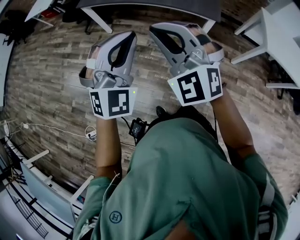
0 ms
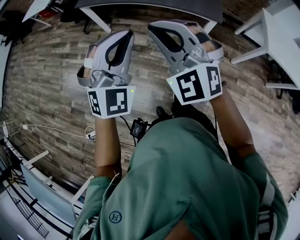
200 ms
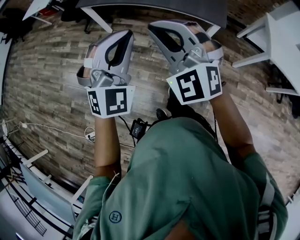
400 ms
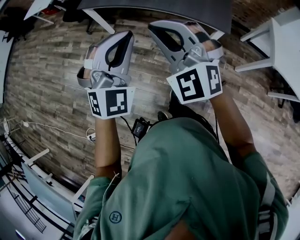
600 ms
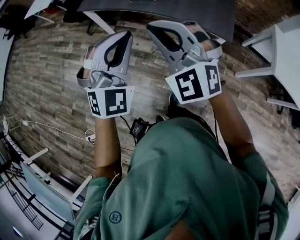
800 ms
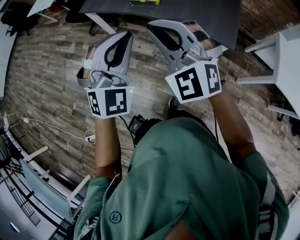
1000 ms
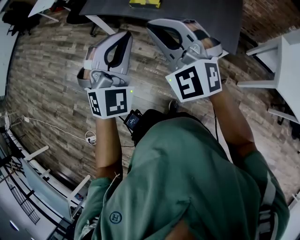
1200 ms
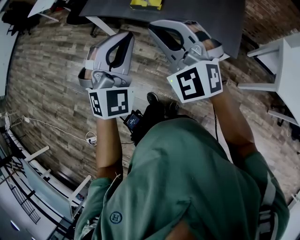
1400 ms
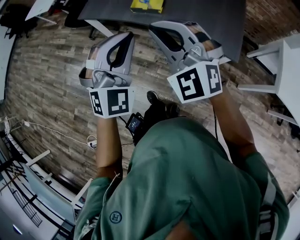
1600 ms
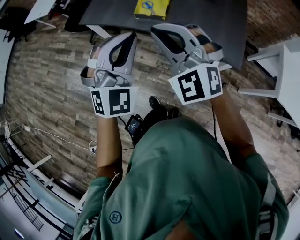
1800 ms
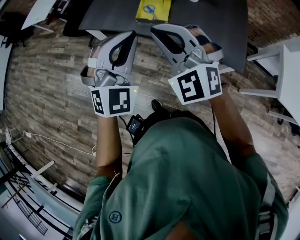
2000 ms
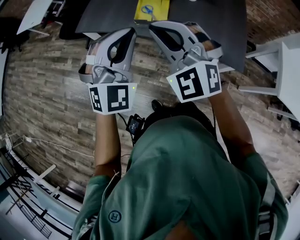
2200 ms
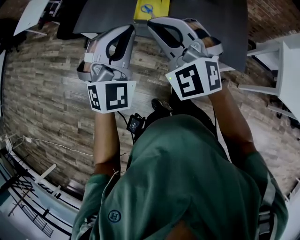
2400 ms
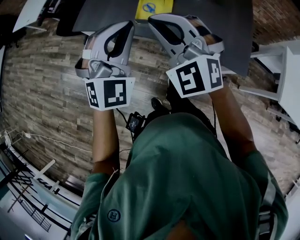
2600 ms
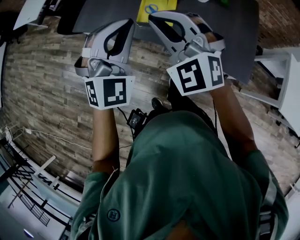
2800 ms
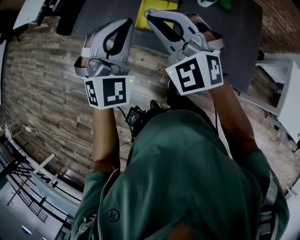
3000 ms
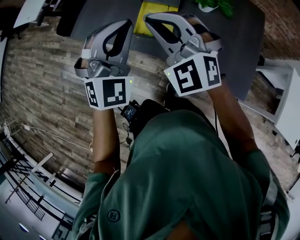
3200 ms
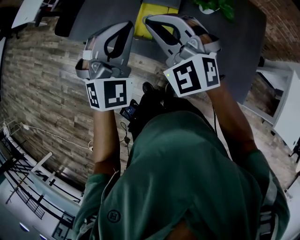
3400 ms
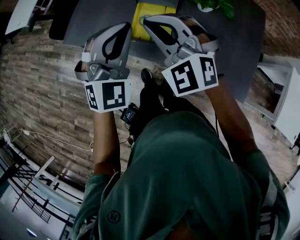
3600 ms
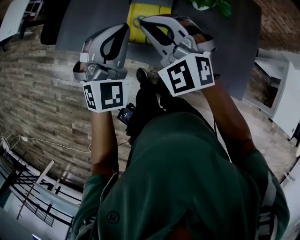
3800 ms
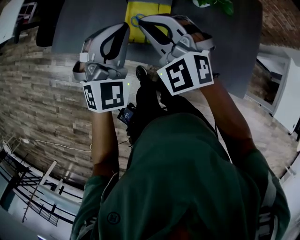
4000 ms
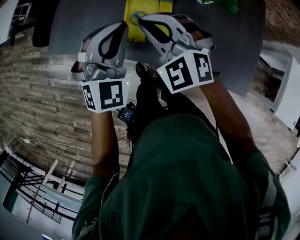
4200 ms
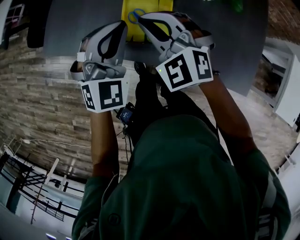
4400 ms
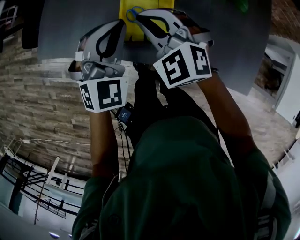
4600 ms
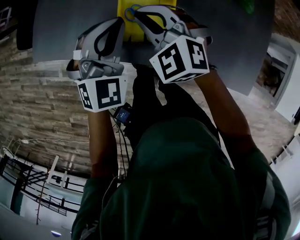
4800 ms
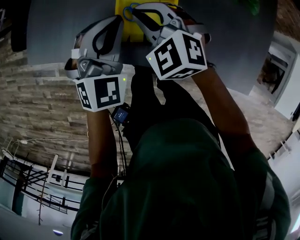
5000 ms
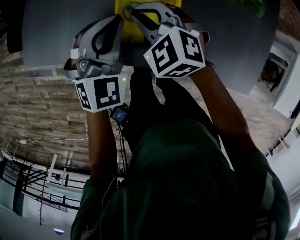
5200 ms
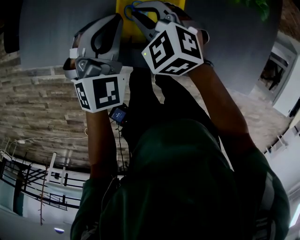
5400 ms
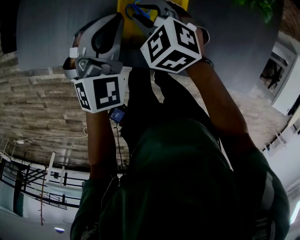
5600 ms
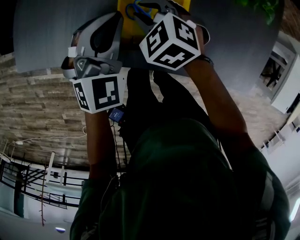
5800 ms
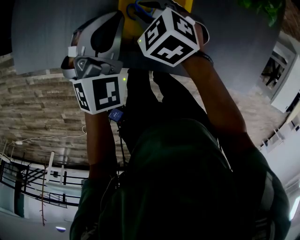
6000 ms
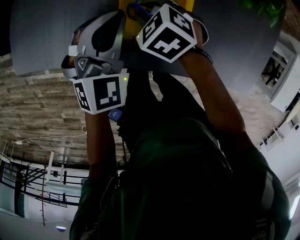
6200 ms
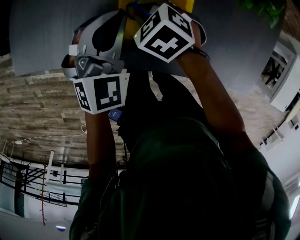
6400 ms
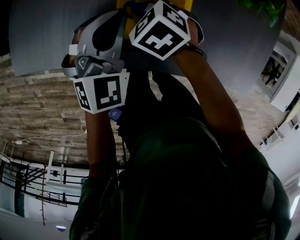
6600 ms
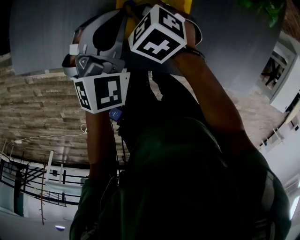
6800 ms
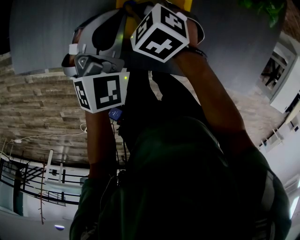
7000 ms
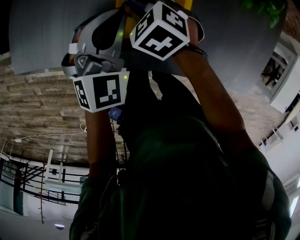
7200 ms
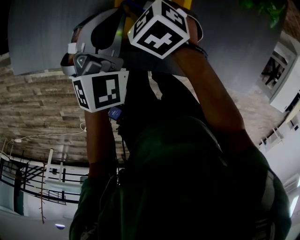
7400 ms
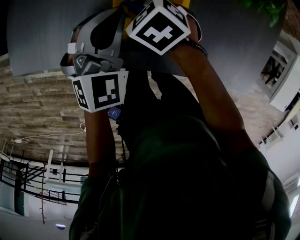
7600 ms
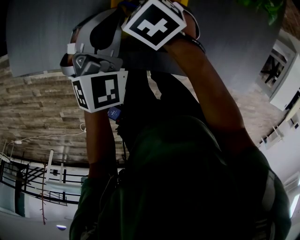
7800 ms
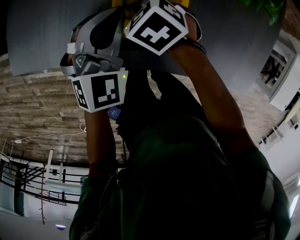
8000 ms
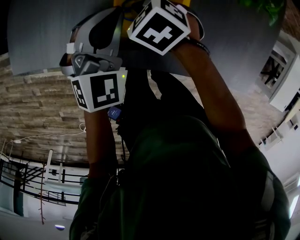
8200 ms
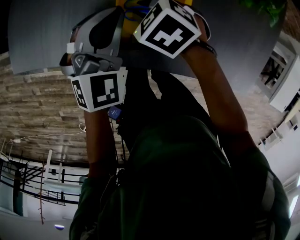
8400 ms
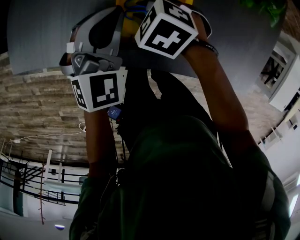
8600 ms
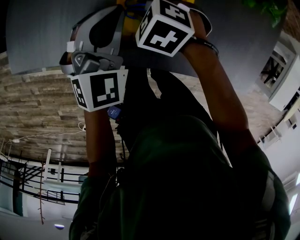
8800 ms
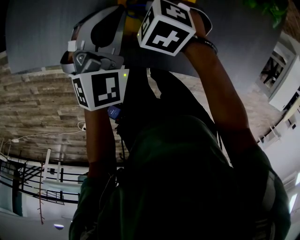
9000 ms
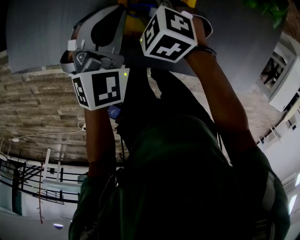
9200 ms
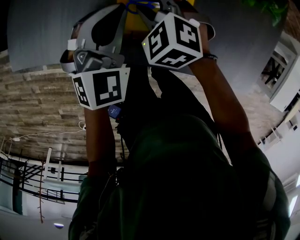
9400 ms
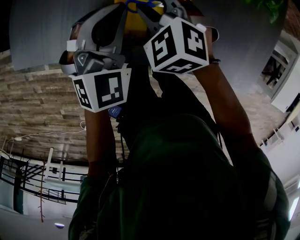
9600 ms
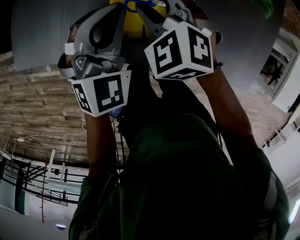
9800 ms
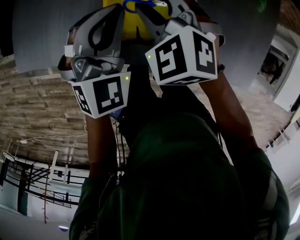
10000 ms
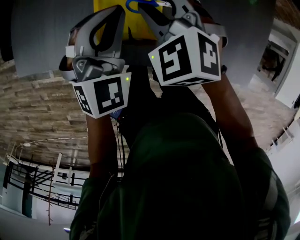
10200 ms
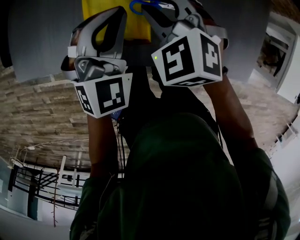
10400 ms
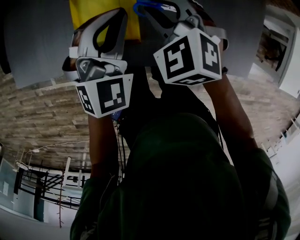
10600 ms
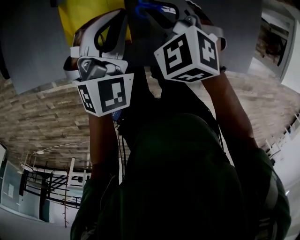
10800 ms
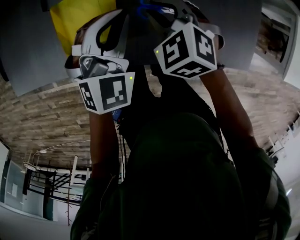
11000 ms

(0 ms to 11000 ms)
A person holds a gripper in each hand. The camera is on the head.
0 ms - 1600 ms: Both grippers move forward, some 30 cm.
1600 ms - 3200 ms: Both grippers move forward, approximately 30 cm.
3200 ms - 4800 ms: The two grippers go roughly 25 cm downward and forward. The right gripper swivels approximately 30 degrees.
4800 ms - 6200 ms: The left gripper shifts roughly 5 cm downward. Meanwhile the right gripper moves downward, about 15 cm, and turns by some 40 degrees.
6200 ms - 7800 ms: The grippers move only a little.
7800 ms - 9400 ms: The right gripper changes its angle by some 30 degrees.
9400 ms - 11000 ms: The two grippers go about 20 cm to the right.

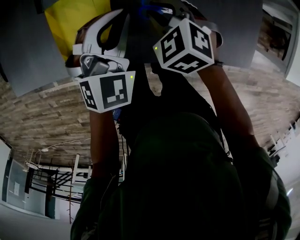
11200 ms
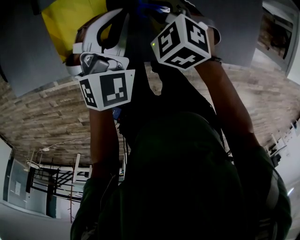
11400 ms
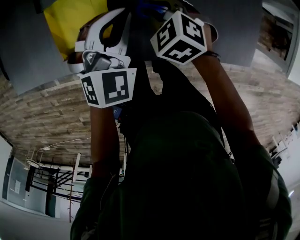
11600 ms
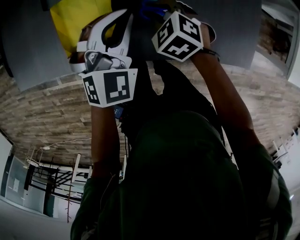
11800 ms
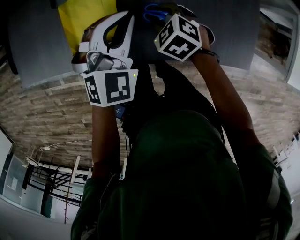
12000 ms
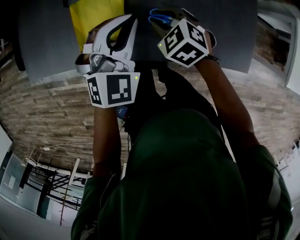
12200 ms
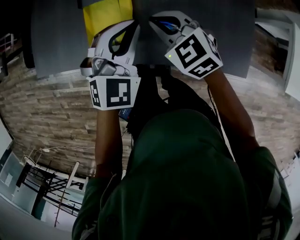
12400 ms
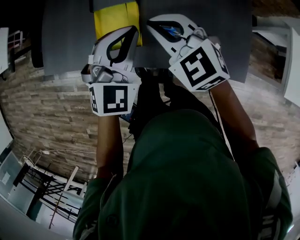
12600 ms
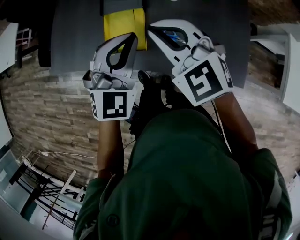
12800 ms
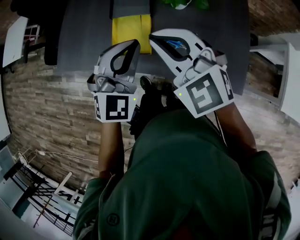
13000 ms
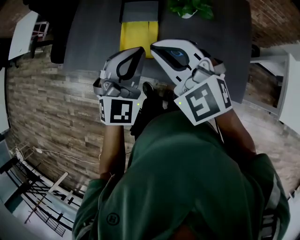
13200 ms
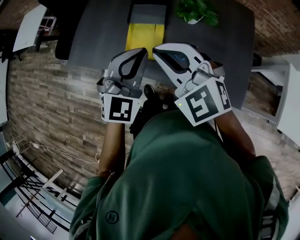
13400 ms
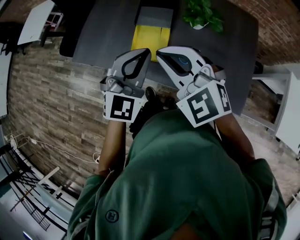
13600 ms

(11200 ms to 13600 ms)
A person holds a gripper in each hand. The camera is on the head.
11200 ms - 12400 ms: The two grippers go some 10 cm upward. The right gripper rotates roughly 20 degrees.
12400 ms - 13600 ms: The right gripper shifts approximately 25 cm upward and backward, and rotates some 30 degrees; the left gripper is displaced upward, to the left and backward by about 15 cm.

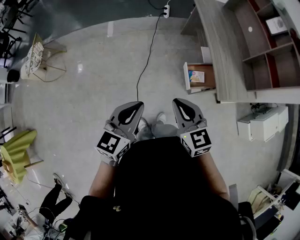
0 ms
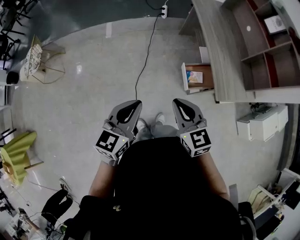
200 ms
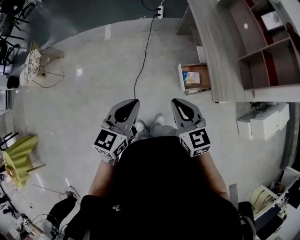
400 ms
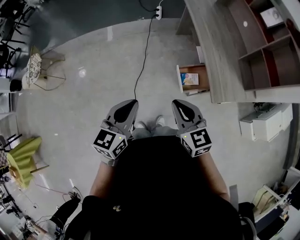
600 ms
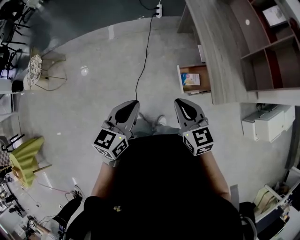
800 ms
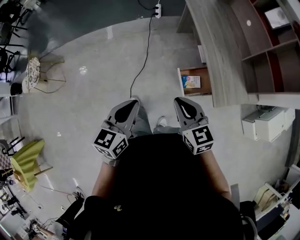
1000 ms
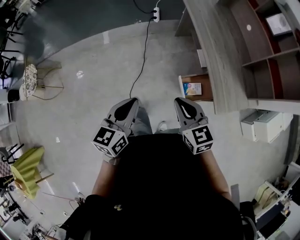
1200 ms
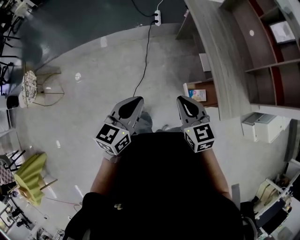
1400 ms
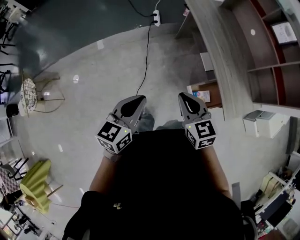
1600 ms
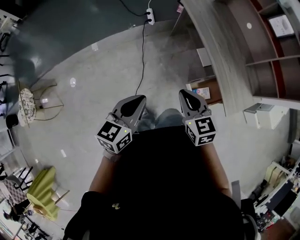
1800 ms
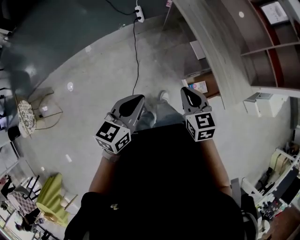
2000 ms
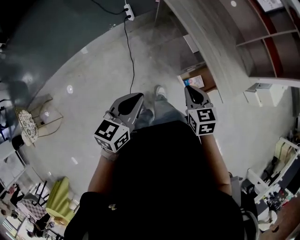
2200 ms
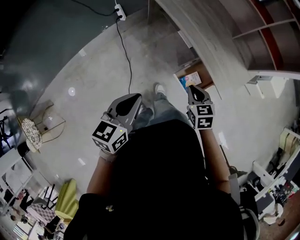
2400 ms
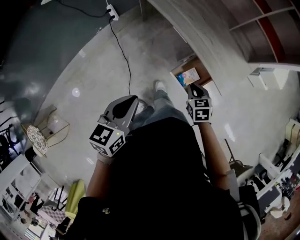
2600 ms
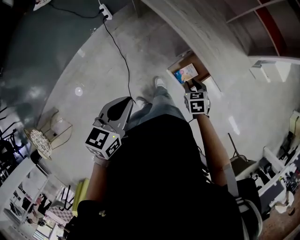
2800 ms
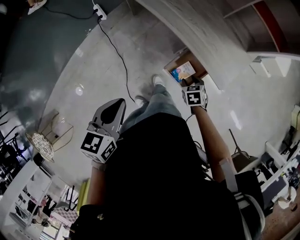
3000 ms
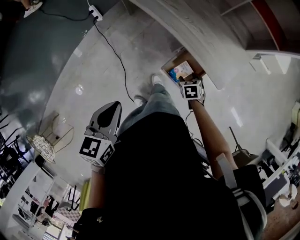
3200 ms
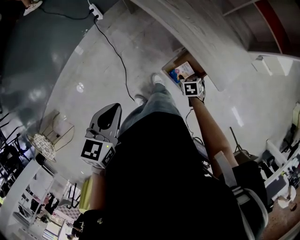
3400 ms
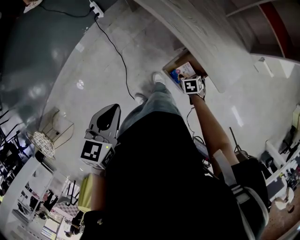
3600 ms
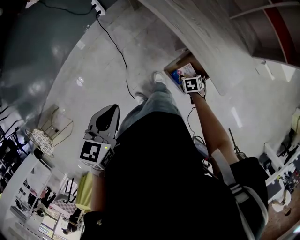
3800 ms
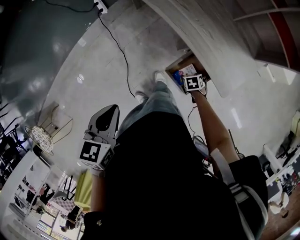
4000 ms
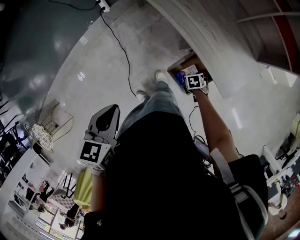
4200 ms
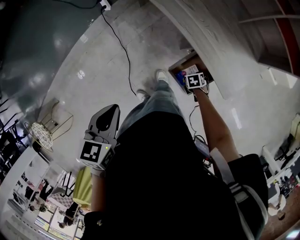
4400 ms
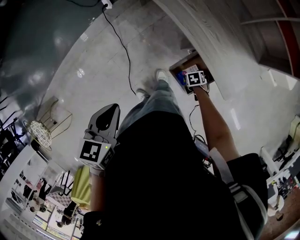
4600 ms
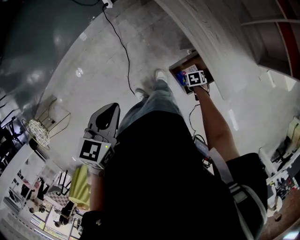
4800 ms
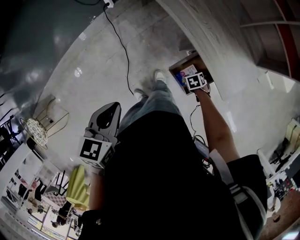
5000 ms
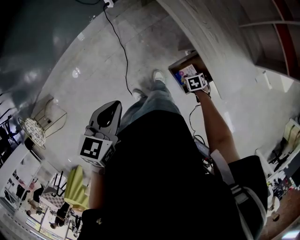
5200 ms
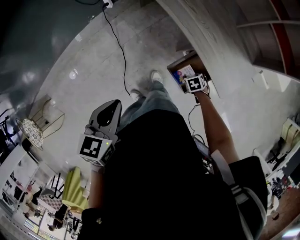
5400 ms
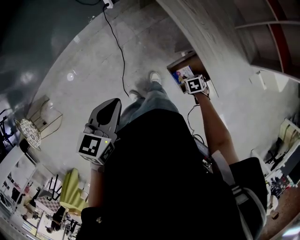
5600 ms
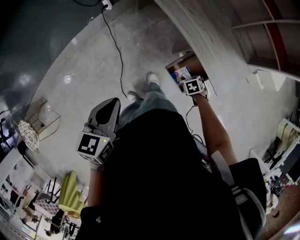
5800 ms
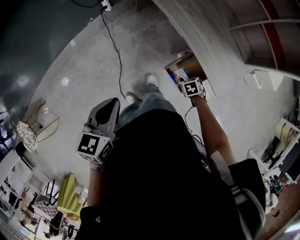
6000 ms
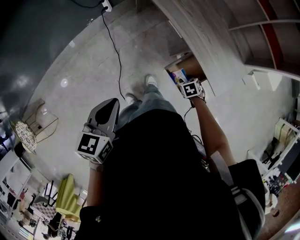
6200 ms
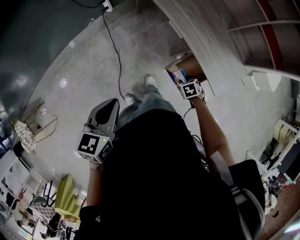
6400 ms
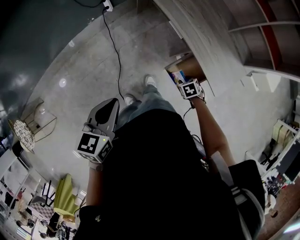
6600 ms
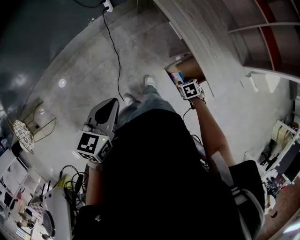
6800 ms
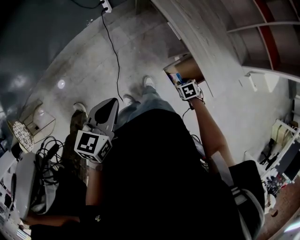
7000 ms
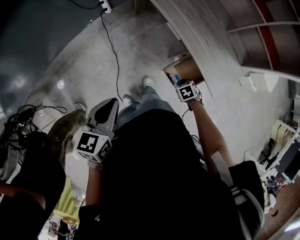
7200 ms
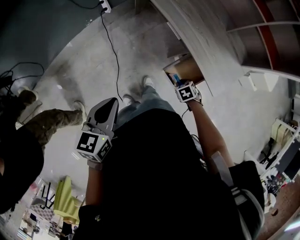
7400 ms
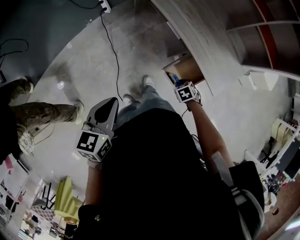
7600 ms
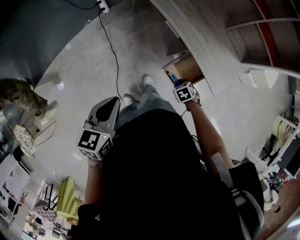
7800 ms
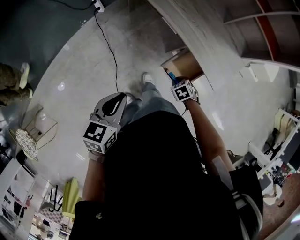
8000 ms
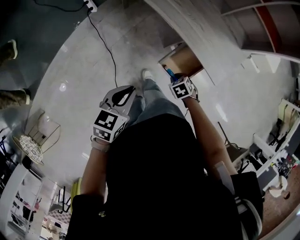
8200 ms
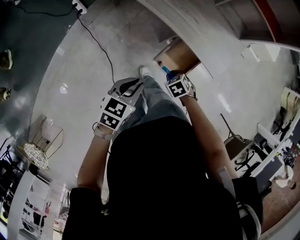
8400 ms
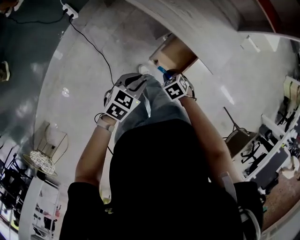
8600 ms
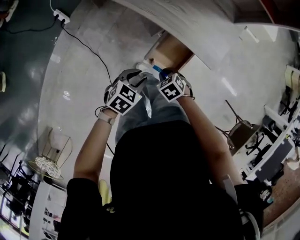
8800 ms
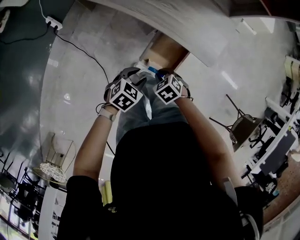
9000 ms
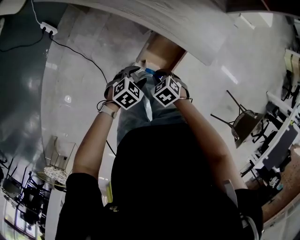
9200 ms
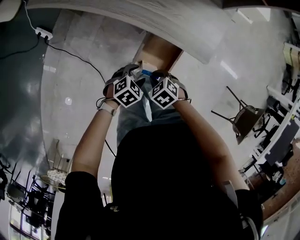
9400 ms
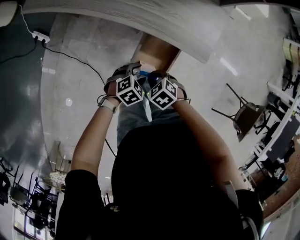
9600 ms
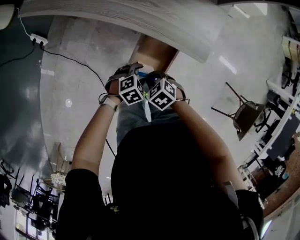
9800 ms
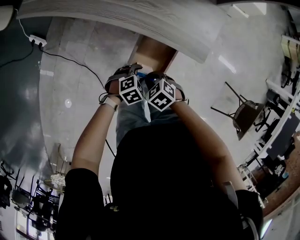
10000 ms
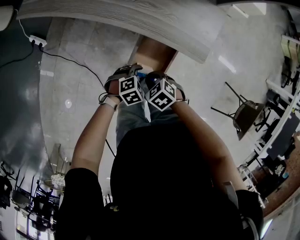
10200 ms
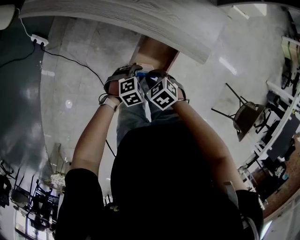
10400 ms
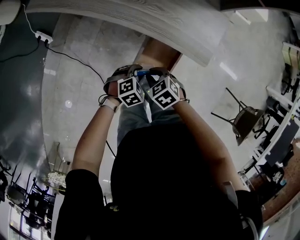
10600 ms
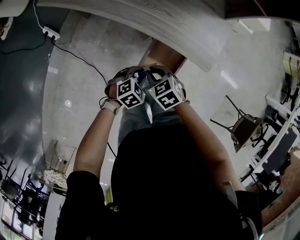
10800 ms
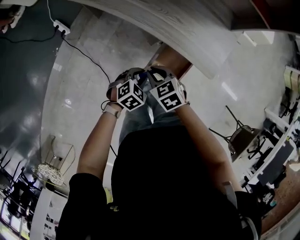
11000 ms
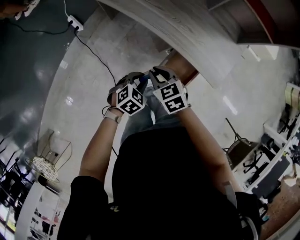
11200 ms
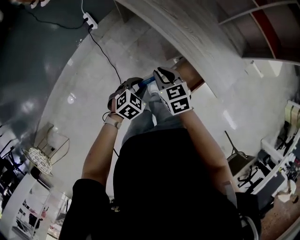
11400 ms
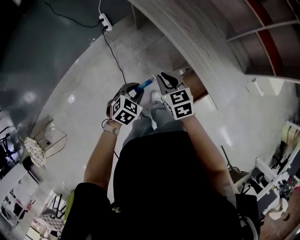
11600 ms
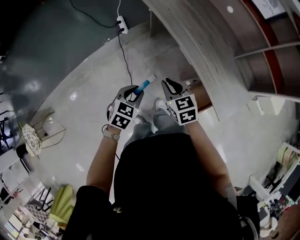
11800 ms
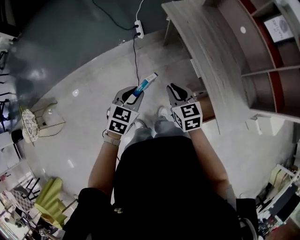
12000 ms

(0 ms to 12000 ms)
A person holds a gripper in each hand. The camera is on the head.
0 ms - 1600 ms: The grippers both shift forward by roughly 30 cm.
1600 ms - 3000 ms: The left gripper moves about 15 cm, and rotates about 30 degrees; the right gripper goes roughly 30 cm downward, angles its fingers downward, by some 40 degrees, and opens up.
3000 ms - 4400 ms: The right gripper moves downward, roughly 15 cm, and opens its fingers.
4400 ms - 6000 ms: The left gripper moves some 5 cm; the right gripper is displaced upward by some 10 cm, and closes its fingers.
6000 ms - 7600 ms: The right gripper shifts by roughly 5 cm, and closes its fingers.
7600 ms - 9000 ms: The left gripper is displaced downward by approximately 25 cm, rotates about 60 degrees, and opens its fingers.
9000 ms - 10400 ms: The left gripper is displaced downward by roughly 5 cm, and turns by roughly 30 degrees.
10400 ms - 12000 ms: The right gripper is displaced upward by roughly 25 cm, and tilts its fingers some 40 degrees upward; the left gripper ends up roughly 40 cm from where it was, and swivels approximately 90 degrees.
